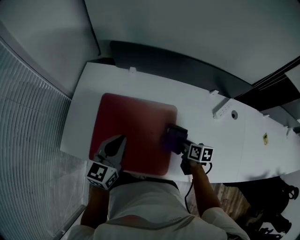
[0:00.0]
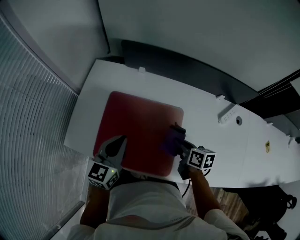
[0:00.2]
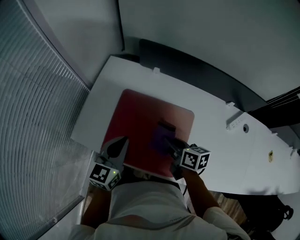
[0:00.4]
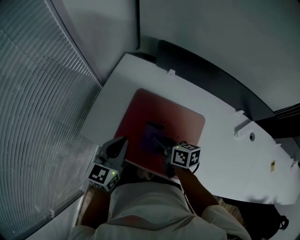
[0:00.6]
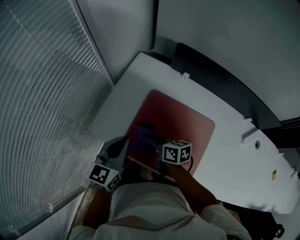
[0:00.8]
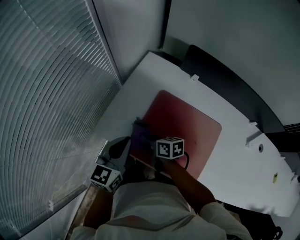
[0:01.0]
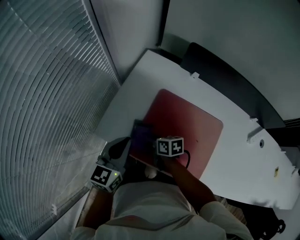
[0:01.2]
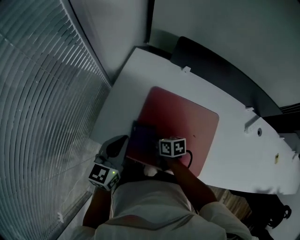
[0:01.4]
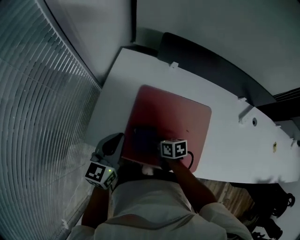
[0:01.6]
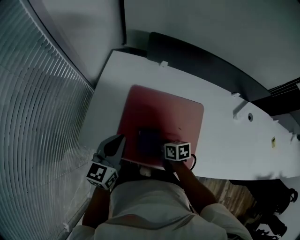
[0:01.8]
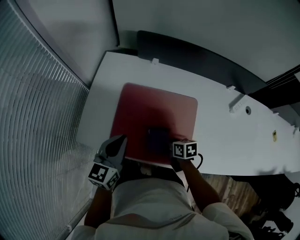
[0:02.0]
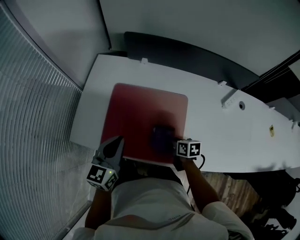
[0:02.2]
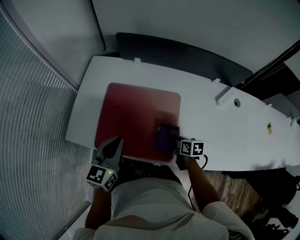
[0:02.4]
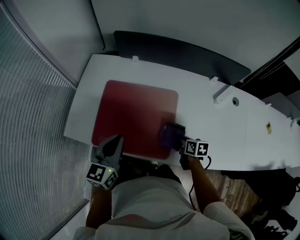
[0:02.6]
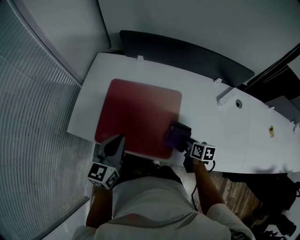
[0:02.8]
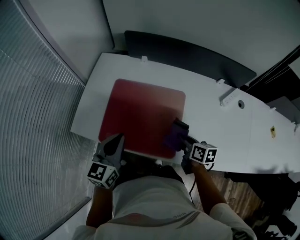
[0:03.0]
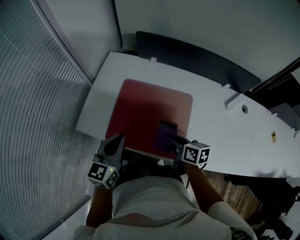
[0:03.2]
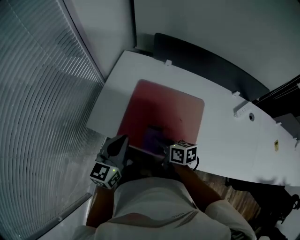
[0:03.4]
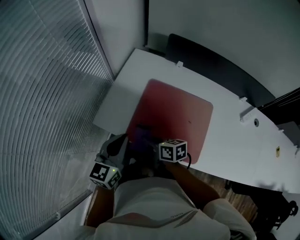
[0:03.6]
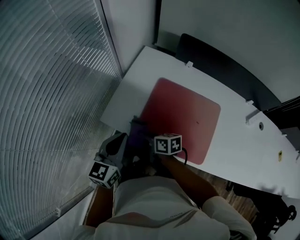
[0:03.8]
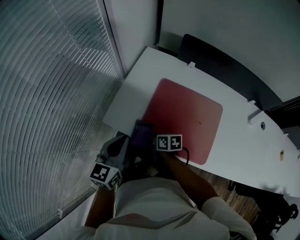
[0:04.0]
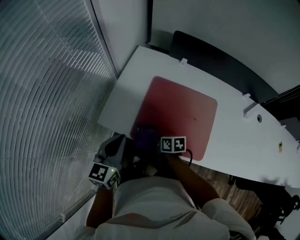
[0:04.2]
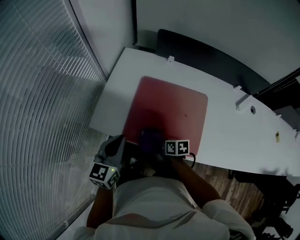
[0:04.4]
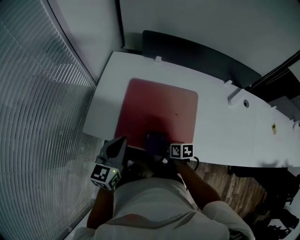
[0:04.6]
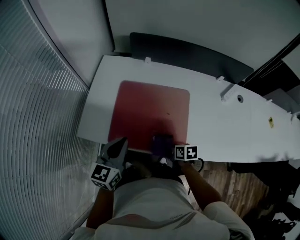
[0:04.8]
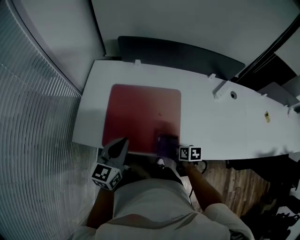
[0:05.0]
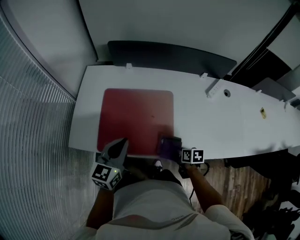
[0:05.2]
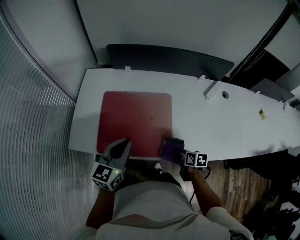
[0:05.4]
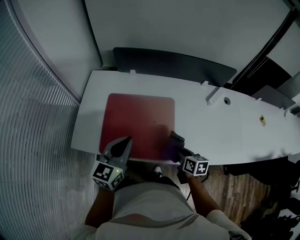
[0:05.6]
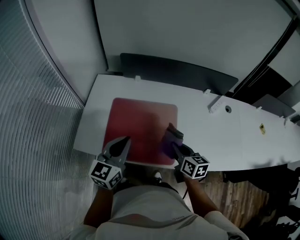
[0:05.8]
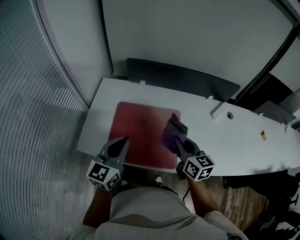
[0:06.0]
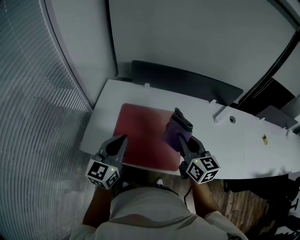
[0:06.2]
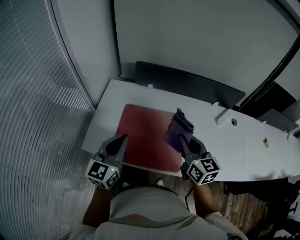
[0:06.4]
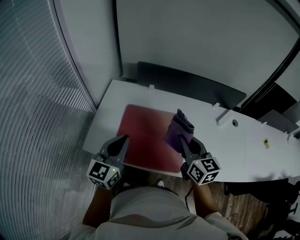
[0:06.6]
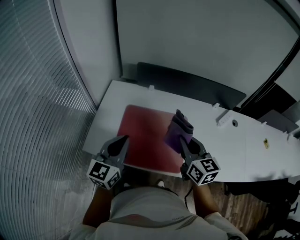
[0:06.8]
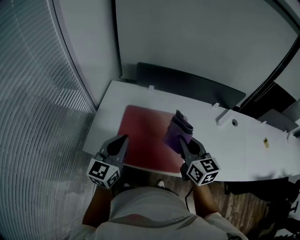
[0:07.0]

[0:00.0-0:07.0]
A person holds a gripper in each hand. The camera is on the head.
0:00.0 to 0:01.4: The right gripper moves approximately 10 cm upward and comes back, and turns by about 30 degrees. Meanwhile the left gripper changes place by roughly 25 cm.
0:01.4 to 0:02.8: The right gripper moves to the right and backward, roughly 40 cm, and turns by about 30 degrees; the left gripper travels to the right and backward by some 25 cm.
0:02.8 to 0:04.2: The left gripper heads to the left, covering roughly 25 cm. Meanwhile the right gripper goes approximately 40 cm to the left, and changes its angle by about 20 degrees.
0:04.2 to 0:05.6: The right gripper moves some 35 cm, and rotates some 30 degrees. Meanwhile the left gripper changes place by about 25 cm, and swivels roughly 20 degrees.
0:05.6 to 0:07.0: The right gripper travels upward and to the left by some 25 cm, and swivels some 30 degrees. Meanwhile the left gripper heads to the left and upward, covering approximately 10 cm.

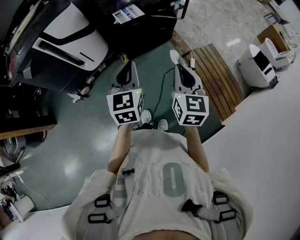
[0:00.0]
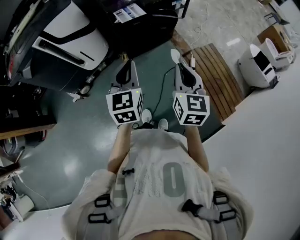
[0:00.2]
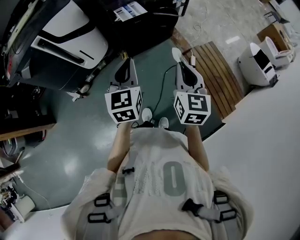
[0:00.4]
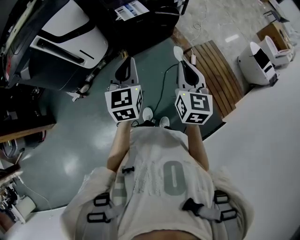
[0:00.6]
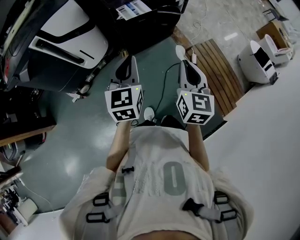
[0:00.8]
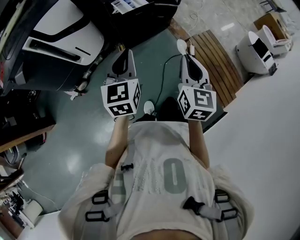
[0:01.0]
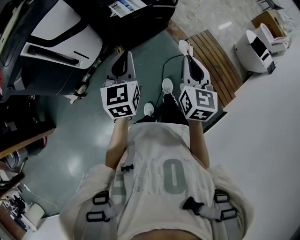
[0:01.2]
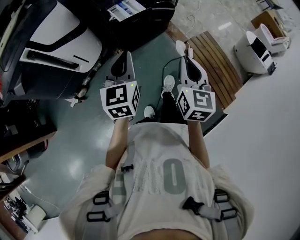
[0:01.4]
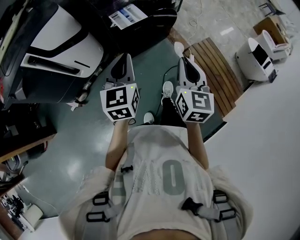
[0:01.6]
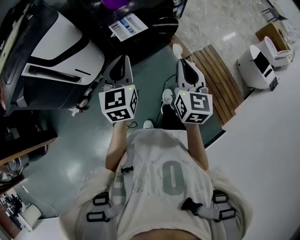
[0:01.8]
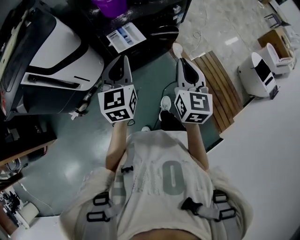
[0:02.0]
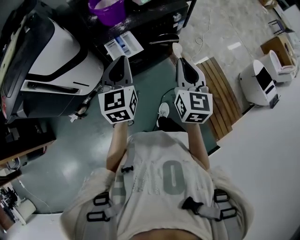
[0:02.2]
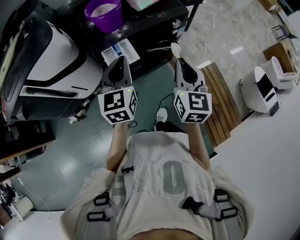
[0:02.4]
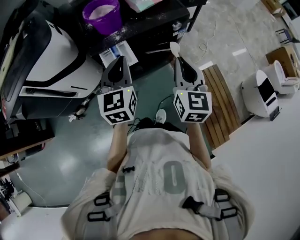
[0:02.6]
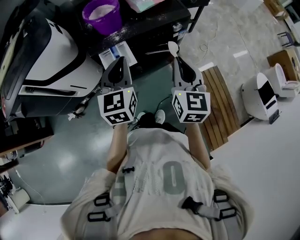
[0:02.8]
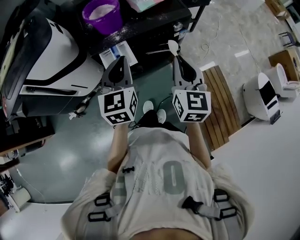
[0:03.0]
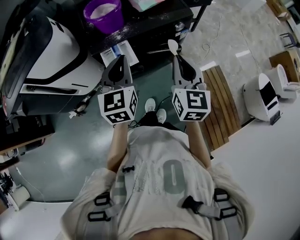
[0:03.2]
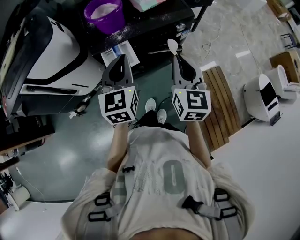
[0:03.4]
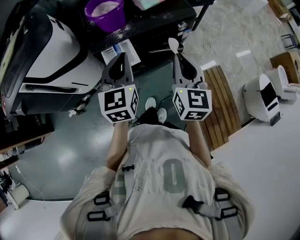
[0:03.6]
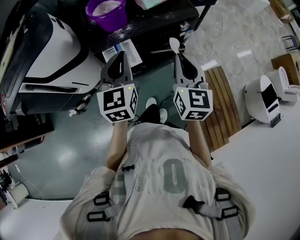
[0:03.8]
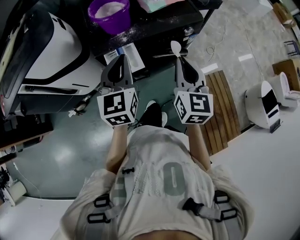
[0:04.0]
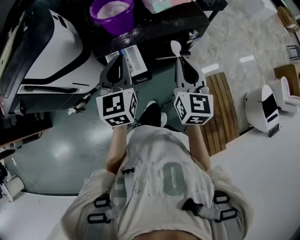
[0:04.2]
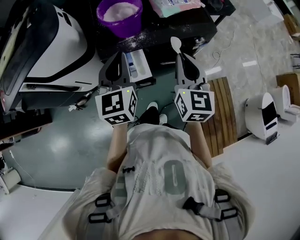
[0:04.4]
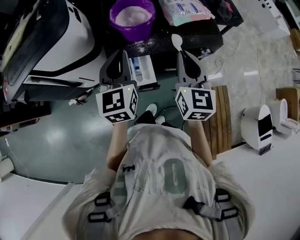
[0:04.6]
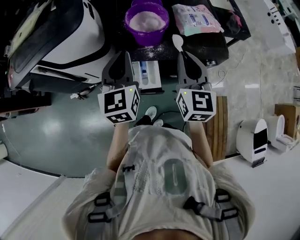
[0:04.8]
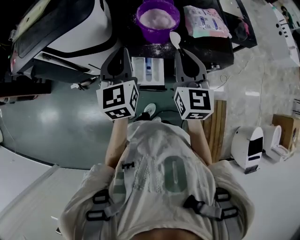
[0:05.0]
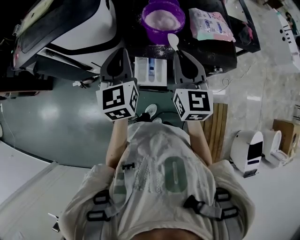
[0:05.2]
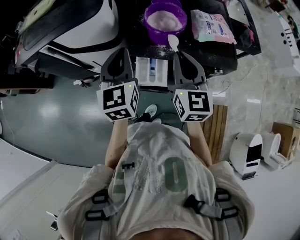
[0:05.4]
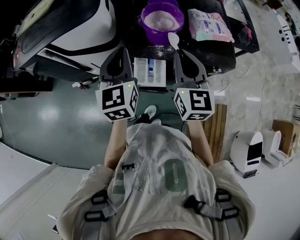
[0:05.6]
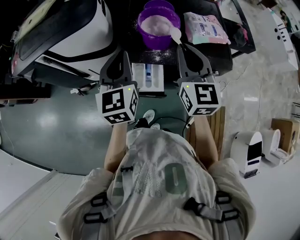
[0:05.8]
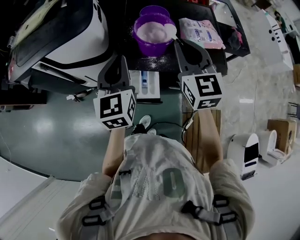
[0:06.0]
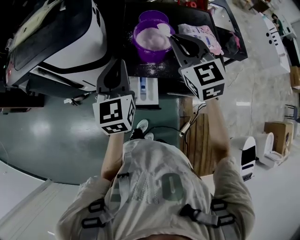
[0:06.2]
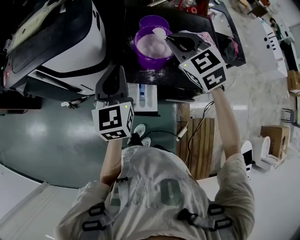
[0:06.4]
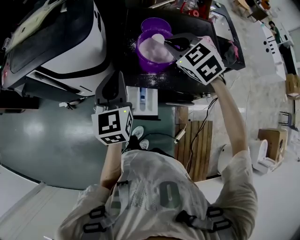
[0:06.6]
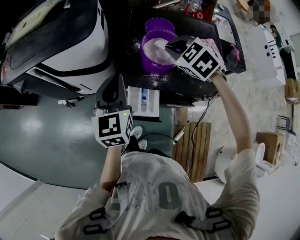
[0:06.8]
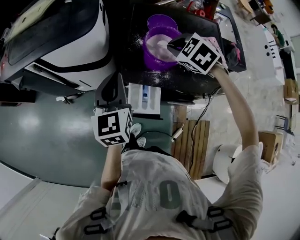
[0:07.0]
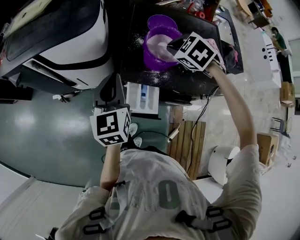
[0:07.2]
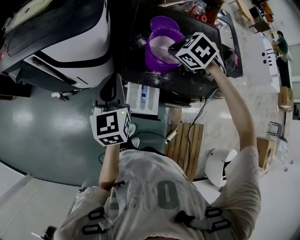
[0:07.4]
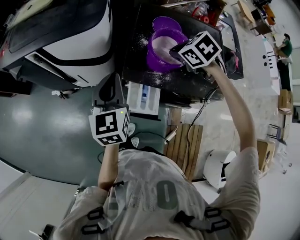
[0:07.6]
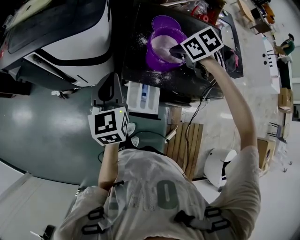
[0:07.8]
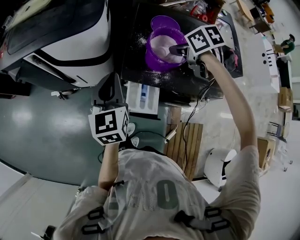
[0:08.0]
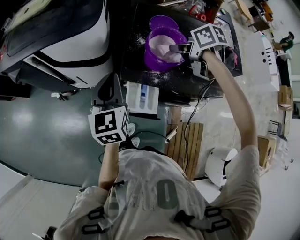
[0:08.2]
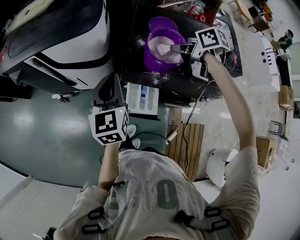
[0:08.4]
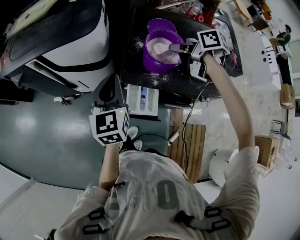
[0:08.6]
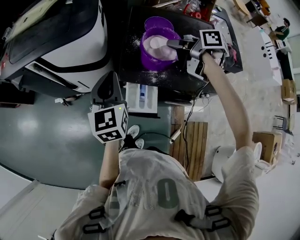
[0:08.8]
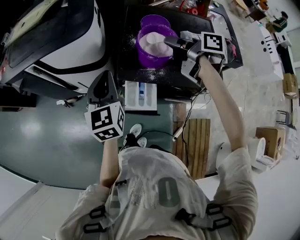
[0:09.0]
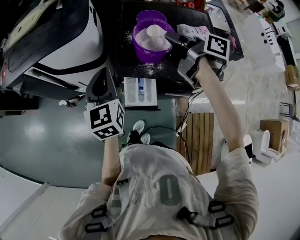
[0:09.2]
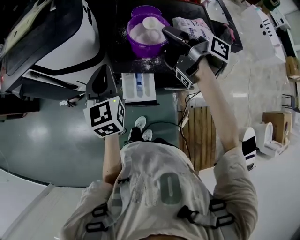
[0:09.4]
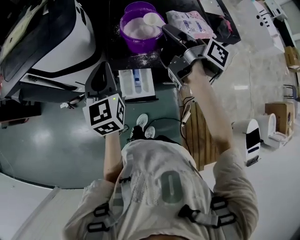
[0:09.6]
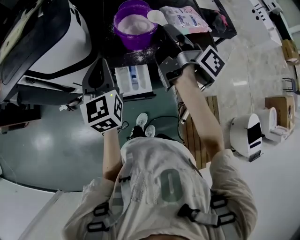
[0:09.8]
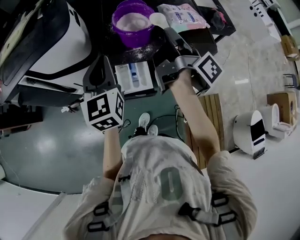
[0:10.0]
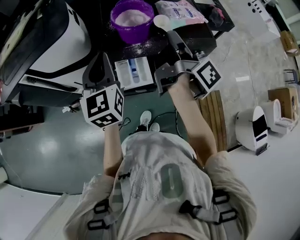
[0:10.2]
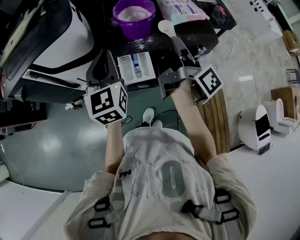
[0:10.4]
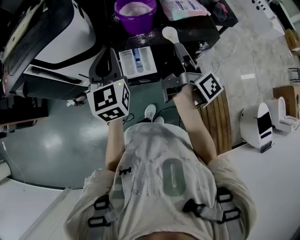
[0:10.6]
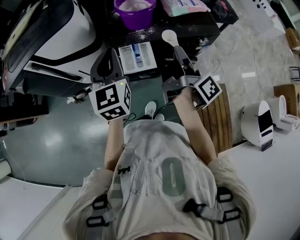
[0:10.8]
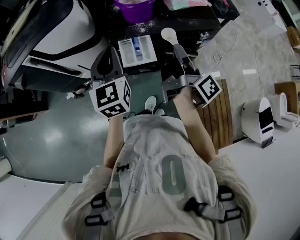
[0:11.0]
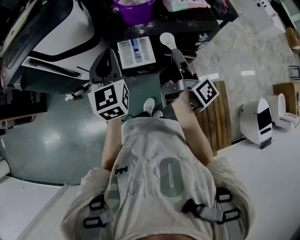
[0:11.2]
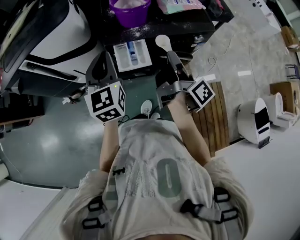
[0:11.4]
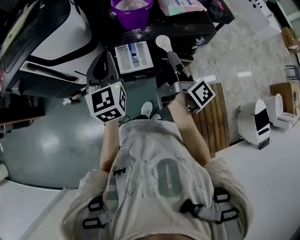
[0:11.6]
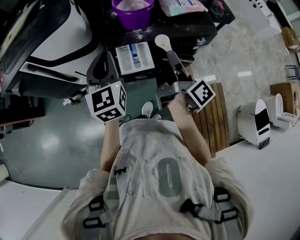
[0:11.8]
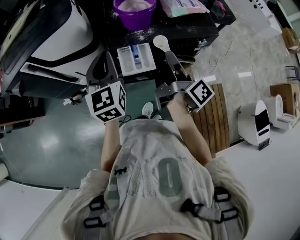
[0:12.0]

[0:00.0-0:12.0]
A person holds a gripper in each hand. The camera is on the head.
0:00.0 to 0:01.6: The right gripper travels forward by approximately 10 cm; the left gripper moves forward and to the left, some 15 cm.
0:01.6 to 0:03.0: The left gripper heads forward and to the right, covering approximately 25 cm. Meanwhile the right gripper shifts about 25 cm forward.
0:03.0 to 0:04.4: The two grippers go some 15 cm forward and to the left.
0:04.4 to 0:06.0: The right gripper heads forward, upward and to the left, covering approximately 20 cm, and changes its angle by about 30 degrees; the left gripper is displaced to the left, upward and forward by some 10 cm.
0:06.0 to 0:07.6: The left gripper shifts approximately 10 cm to the left and downward. The right gripper goes about 20 cm downward and forward, and tilts its fingers approximately 60 degrees downward.
0:07.6 to 0:09.0: The right gripper goes roughly 5 cm upward, and twists about 70 degrees clockwise, seen from behind.
0:09.0 to 0:10.4: The left gripper shifts by approximately 10 cm. Meanwhile the right gripper changes place by about 20 cm, and changes its angle by about 60 degrees.
0:10.4 to 0:12.0: The right gripper moves downward and backward, approximately 10 cm.

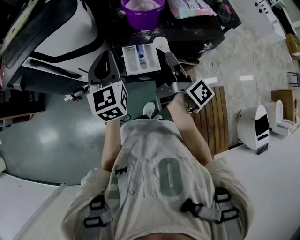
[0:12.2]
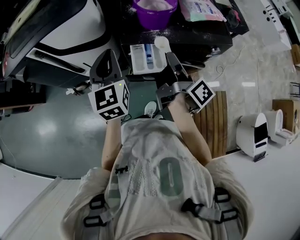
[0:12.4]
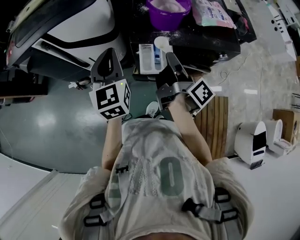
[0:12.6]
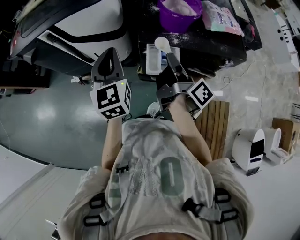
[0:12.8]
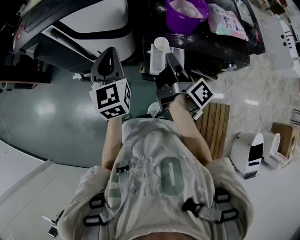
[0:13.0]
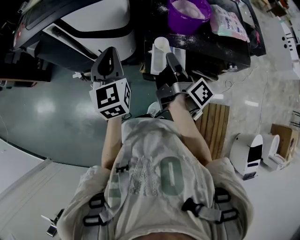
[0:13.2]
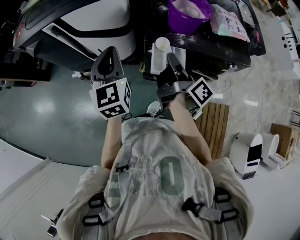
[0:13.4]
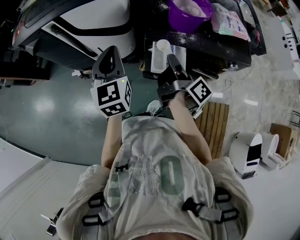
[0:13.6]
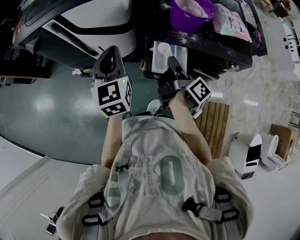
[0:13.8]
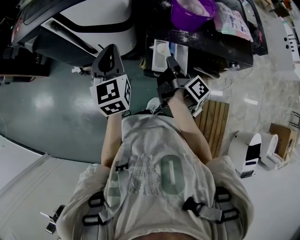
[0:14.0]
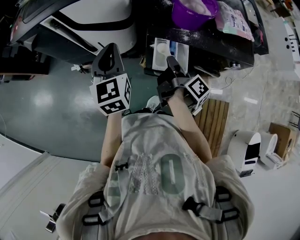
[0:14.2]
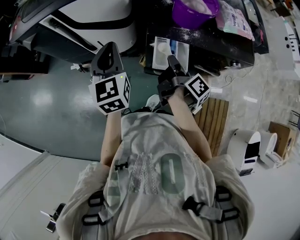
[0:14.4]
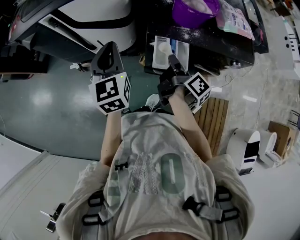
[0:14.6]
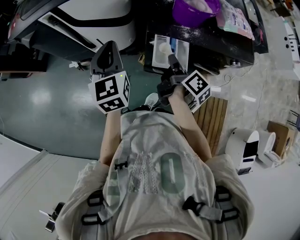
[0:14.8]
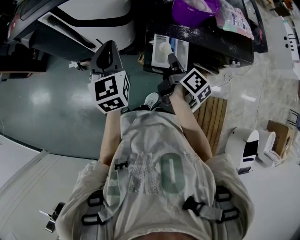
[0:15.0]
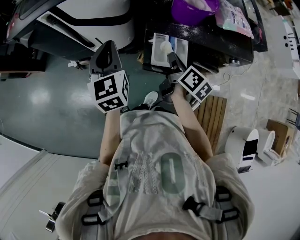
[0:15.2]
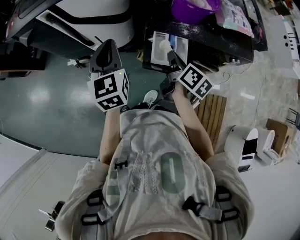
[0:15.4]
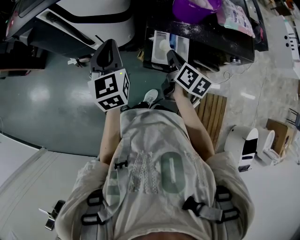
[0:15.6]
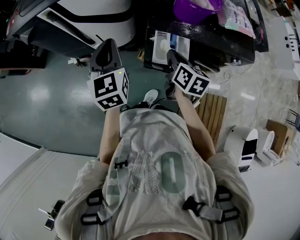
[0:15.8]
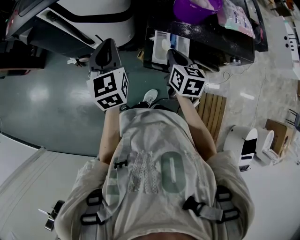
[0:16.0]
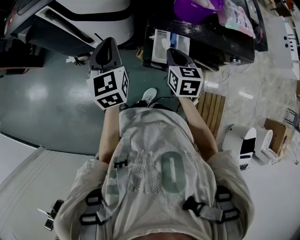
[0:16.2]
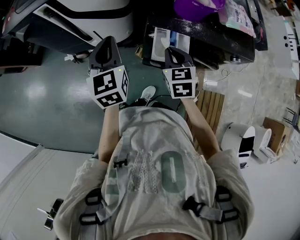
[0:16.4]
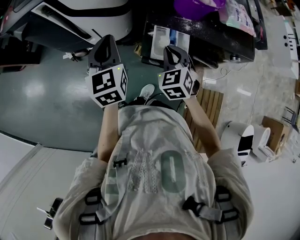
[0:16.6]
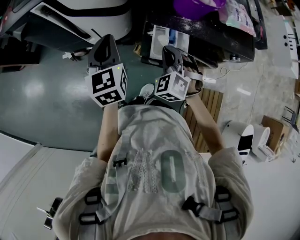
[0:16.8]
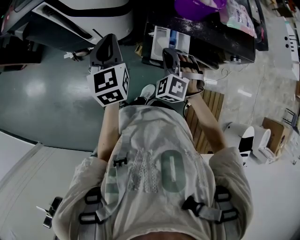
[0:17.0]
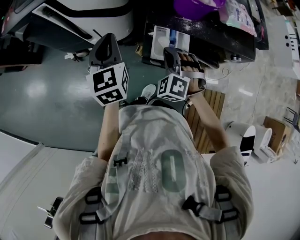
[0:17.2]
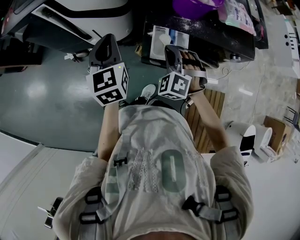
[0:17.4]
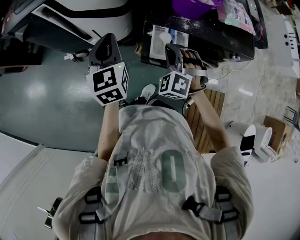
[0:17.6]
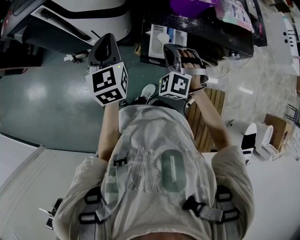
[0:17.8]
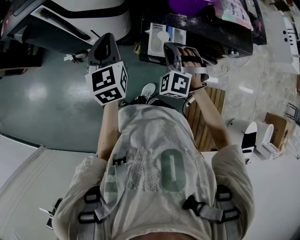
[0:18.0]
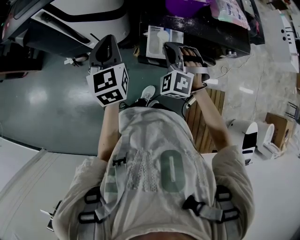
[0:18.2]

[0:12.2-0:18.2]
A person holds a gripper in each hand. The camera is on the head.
0:12.2 to 0:13.8: The right gripper shifts about 15 cm to the left, downward and forward; the left gripper shifts some 10 cm to the left.
0:13.8 to 0:15.2: The right gripper rotates roughly 30 degrees.
0:15.2 to 0:16.6: The right gripper rotates around the line of its fingers by about 90 degrees, counterclockwise from behind.
0:16.6 to 0:18.2: The right gripper swivels about 40 degrees.
